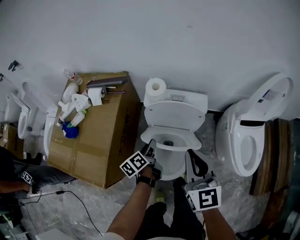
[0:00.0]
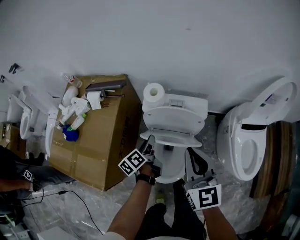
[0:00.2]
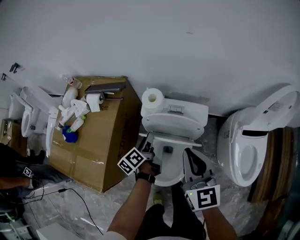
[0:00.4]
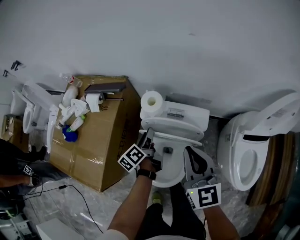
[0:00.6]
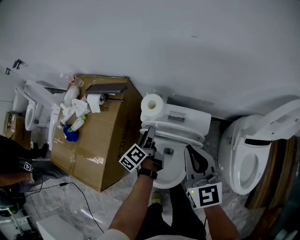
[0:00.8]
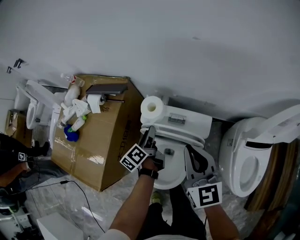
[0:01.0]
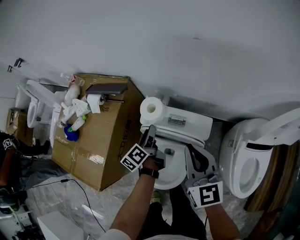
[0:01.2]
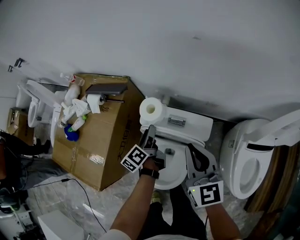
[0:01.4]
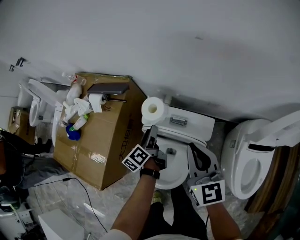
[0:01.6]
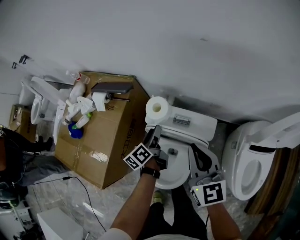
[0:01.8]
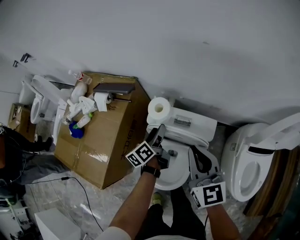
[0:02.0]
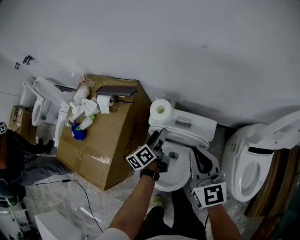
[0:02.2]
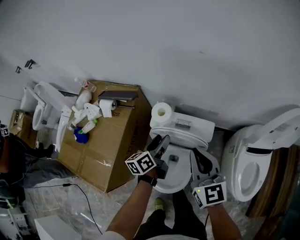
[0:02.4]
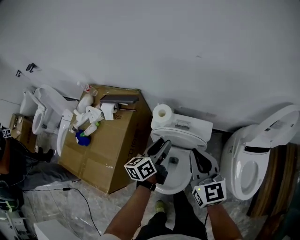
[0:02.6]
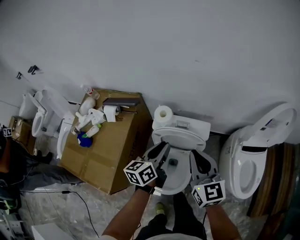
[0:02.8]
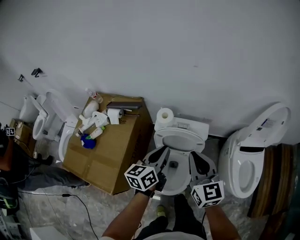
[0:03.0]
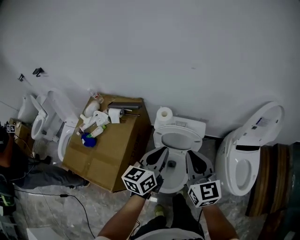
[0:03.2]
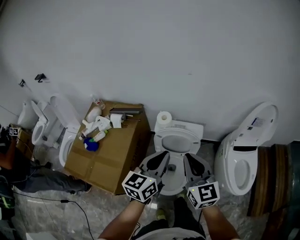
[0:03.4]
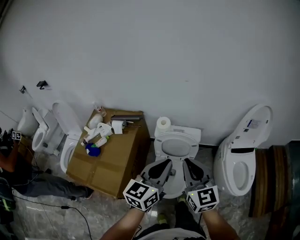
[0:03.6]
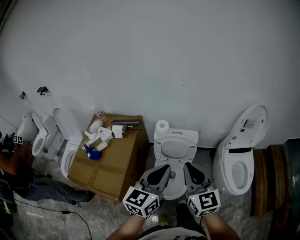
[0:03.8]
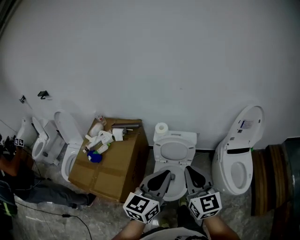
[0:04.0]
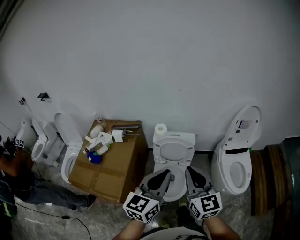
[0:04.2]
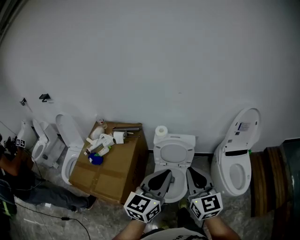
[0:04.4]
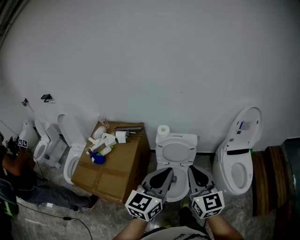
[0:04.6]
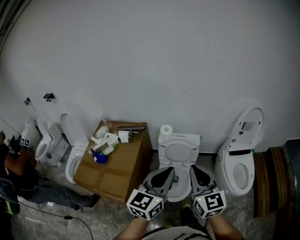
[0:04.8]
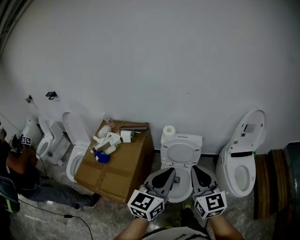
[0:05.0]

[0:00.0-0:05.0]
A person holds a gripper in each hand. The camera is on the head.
0.0 to 1.6 s: The left gripper travels forward by approximately 20 cm. Meanwhile the right gripper moves forward and to the right, approximately 20 cm.
1.6 to 3.4 s: The right gripper shifts some 25 cm backward and upward. Meanwhile the left gripper shifts about 40 cm upward and backward, rotates around the line of its fingers by about 50 degrees, clockwise from behind, and closes up.
3.4 to 5.0 s: The two grippers go some 20 cm backward and upward.

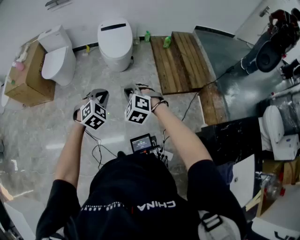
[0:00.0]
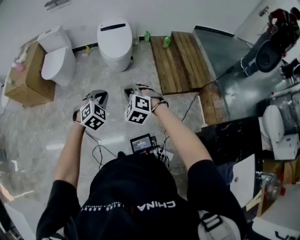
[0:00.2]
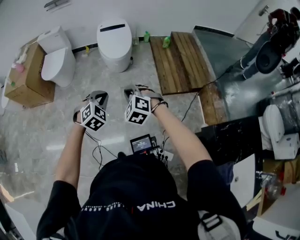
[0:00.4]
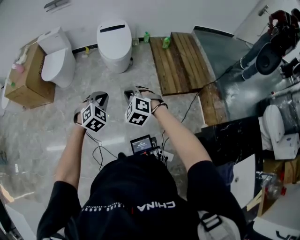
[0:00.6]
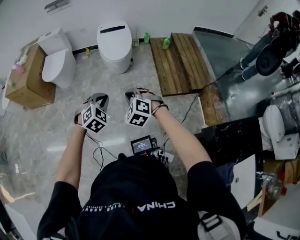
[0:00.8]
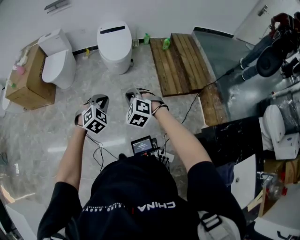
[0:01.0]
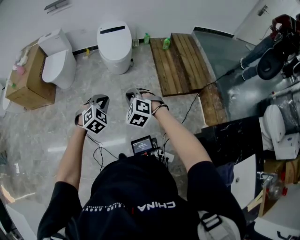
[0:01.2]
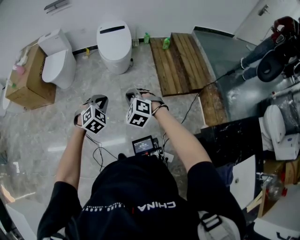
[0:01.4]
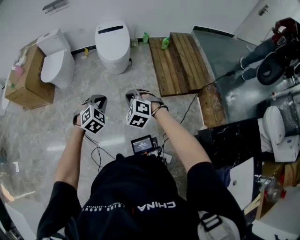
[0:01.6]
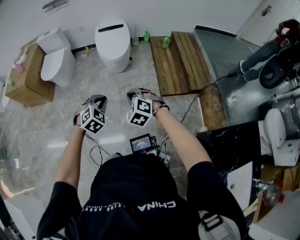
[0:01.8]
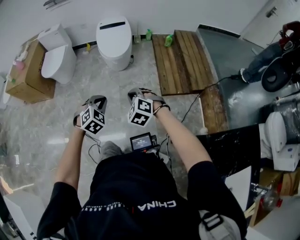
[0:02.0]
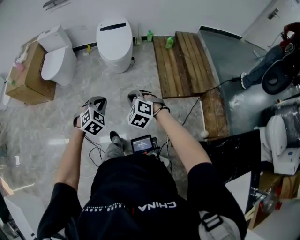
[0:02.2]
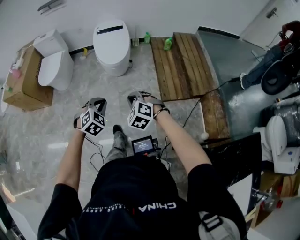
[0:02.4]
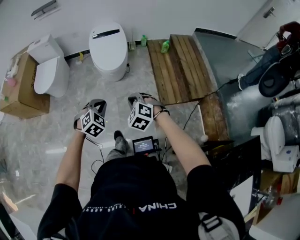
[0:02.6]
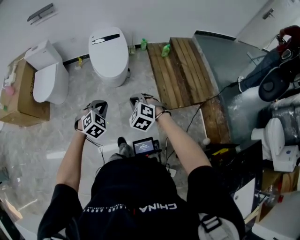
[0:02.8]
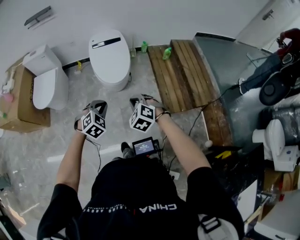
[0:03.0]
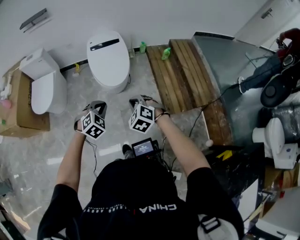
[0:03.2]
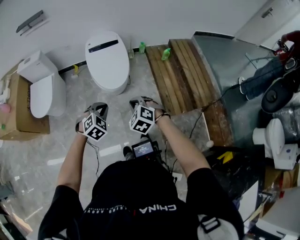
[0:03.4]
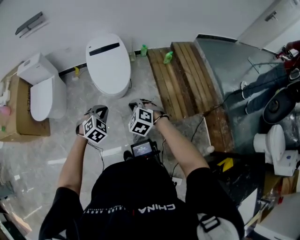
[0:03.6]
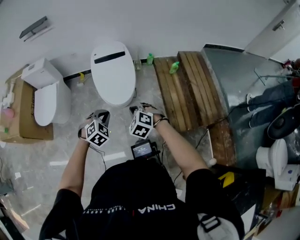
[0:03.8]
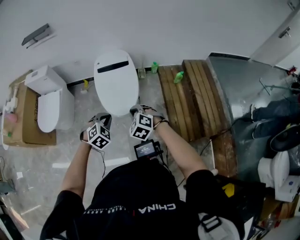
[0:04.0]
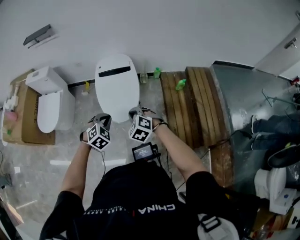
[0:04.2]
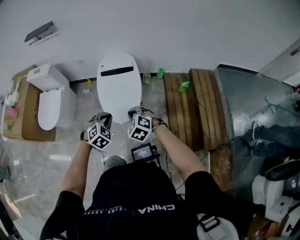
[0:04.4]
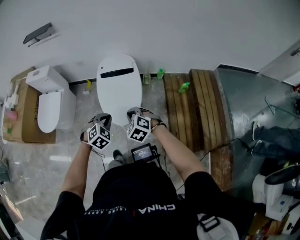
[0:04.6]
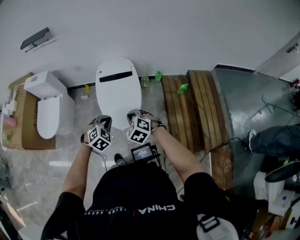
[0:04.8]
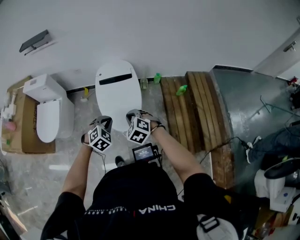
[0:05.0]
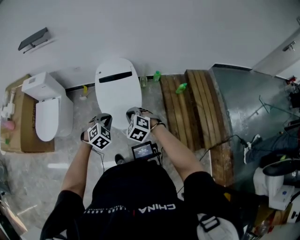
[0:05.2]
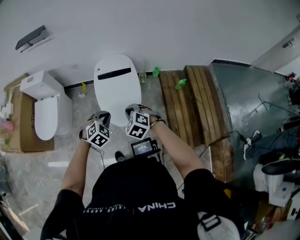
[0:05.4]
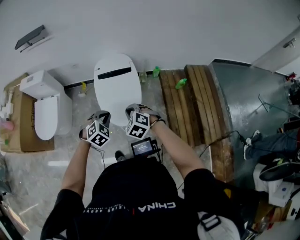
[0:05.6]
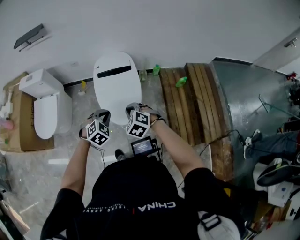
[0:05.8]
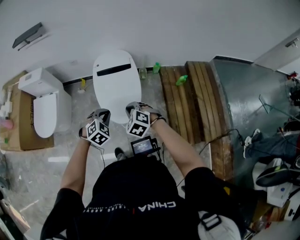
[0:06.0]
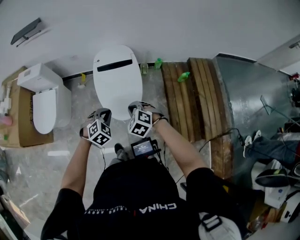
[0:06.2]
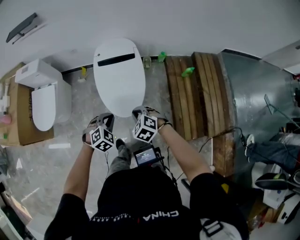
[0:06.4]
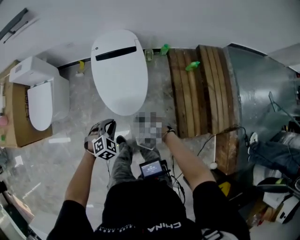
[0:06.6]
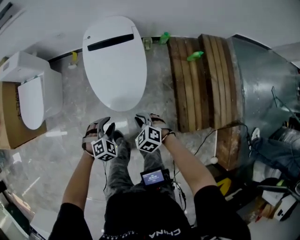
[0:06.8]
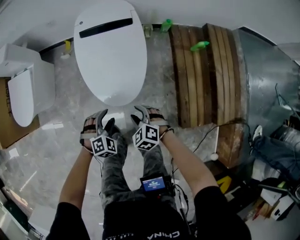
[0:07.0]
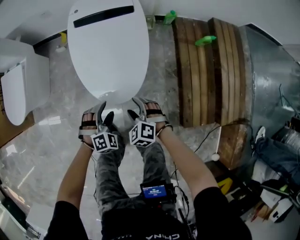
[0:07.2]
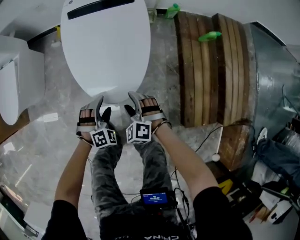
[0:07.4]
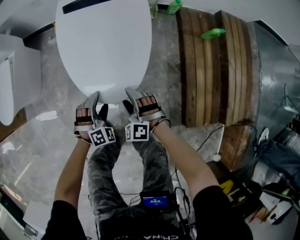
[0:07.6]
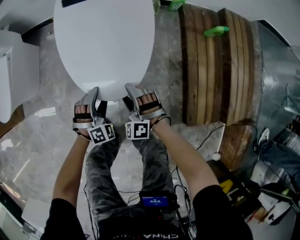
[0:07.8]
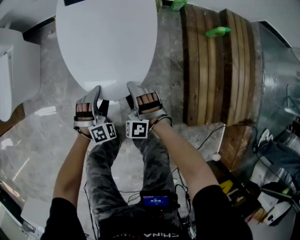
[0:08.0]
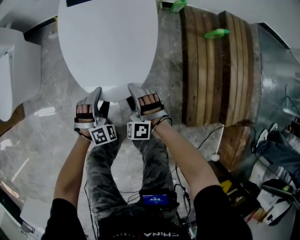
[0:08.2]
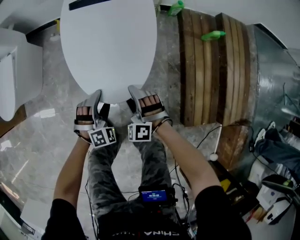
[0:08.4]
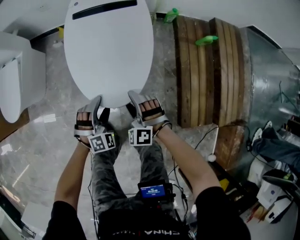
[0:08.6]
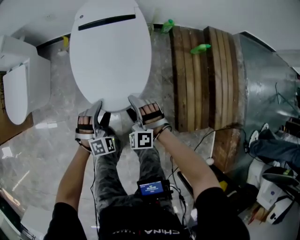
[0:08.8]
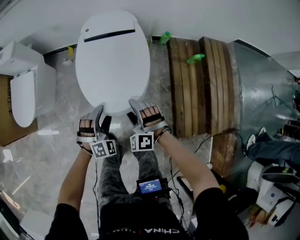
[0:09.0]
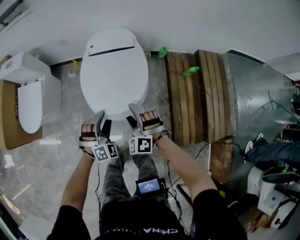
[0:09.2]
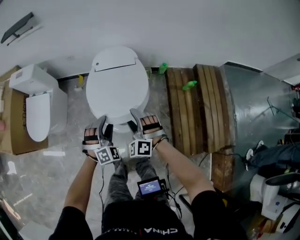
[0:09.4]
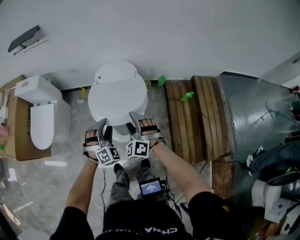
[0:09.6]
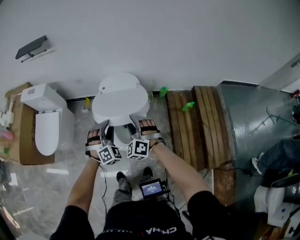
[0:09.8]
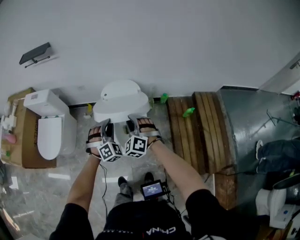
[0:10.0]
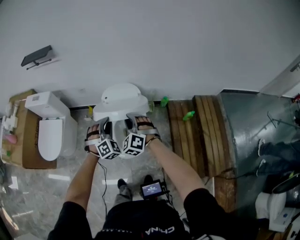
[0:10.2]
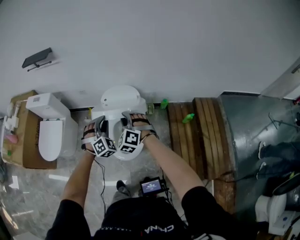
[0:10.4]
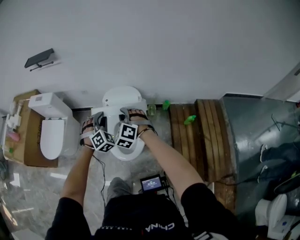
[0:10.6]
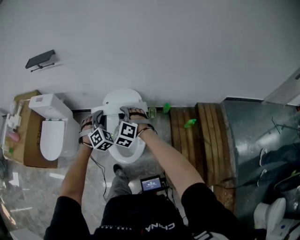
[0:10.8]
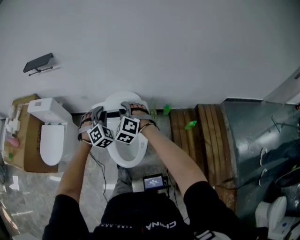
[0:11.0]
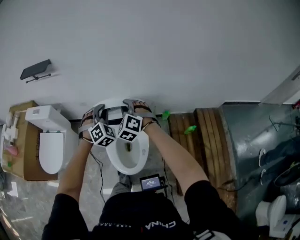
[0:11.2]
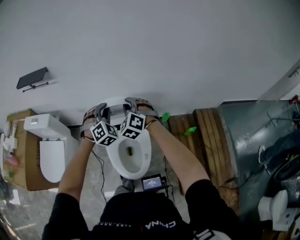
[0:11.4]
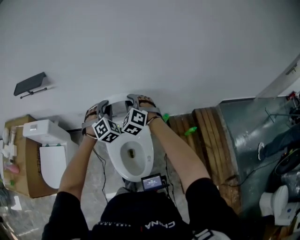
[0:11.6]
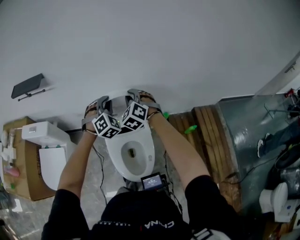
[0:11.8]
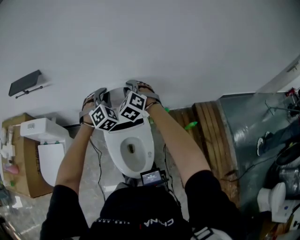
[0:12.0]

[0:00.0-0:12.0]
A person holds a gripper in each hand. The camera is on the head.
0.0 to 1.6 s: The grippers make only small movements.
1.6 to 3.0 s: The two grippers go about 30 cm forward.
3.0 to 4.4 s: The two grippers go about 35 cm forward.
4.4 to 6.0 s: The grippers both shift forward by some 5 cm.
6.0 to 7.6 s: The grippers both shift downward by roughly 40 cm. The left gripper swivels approximately 20 degrees, and opens its fingers; the right gripper rotates about 20 degrees, and opens its fingers.
7.6 to 9.0 s: The two grippers go approximately 25 cm upward.
9.0 to 10.4 s: The grippers both shift upward and forward by roughly 30 cm. The left gripper closes. Meanwhile the right gripper closes.
10.4 to 12.0 s: The two grippers go about 30 cm forward.

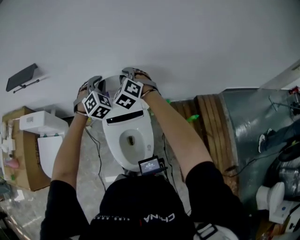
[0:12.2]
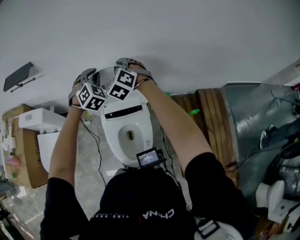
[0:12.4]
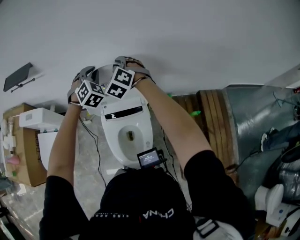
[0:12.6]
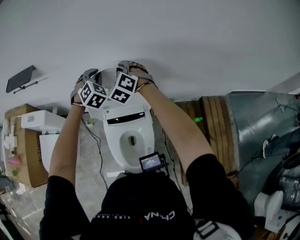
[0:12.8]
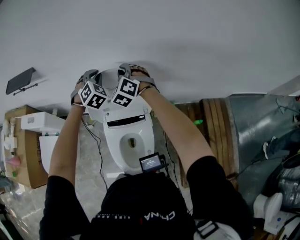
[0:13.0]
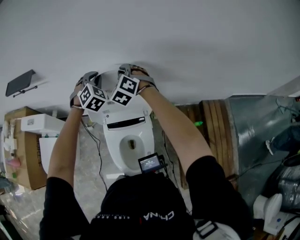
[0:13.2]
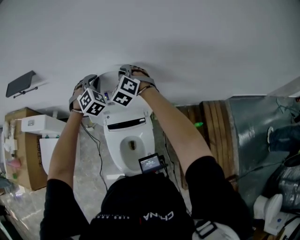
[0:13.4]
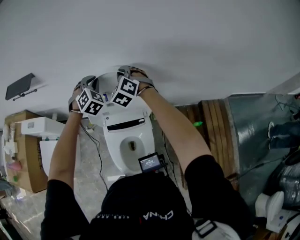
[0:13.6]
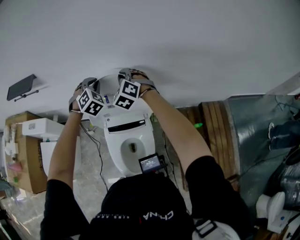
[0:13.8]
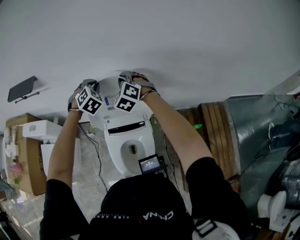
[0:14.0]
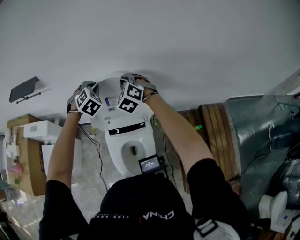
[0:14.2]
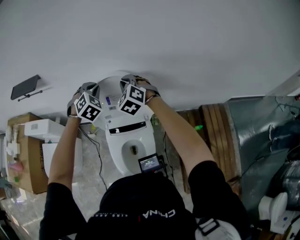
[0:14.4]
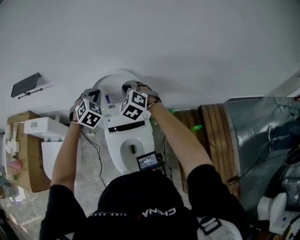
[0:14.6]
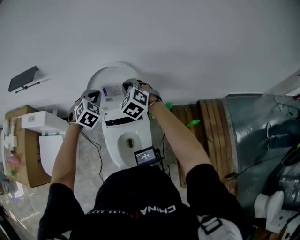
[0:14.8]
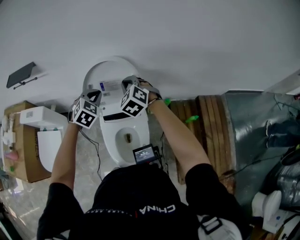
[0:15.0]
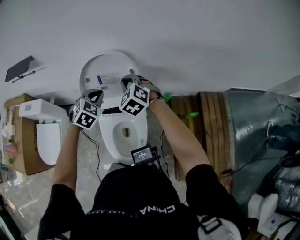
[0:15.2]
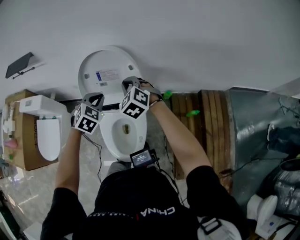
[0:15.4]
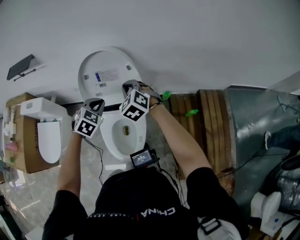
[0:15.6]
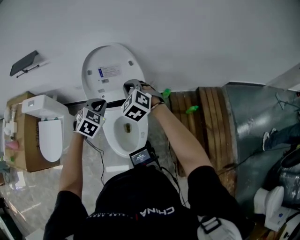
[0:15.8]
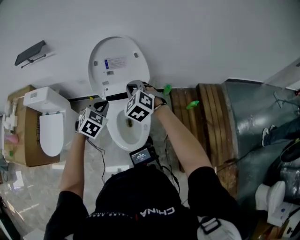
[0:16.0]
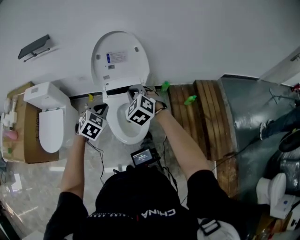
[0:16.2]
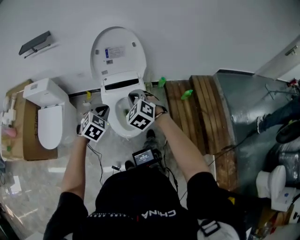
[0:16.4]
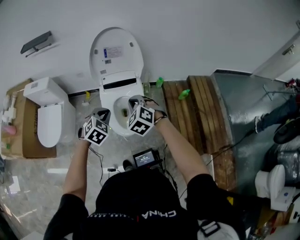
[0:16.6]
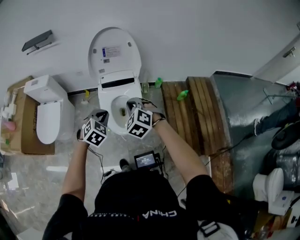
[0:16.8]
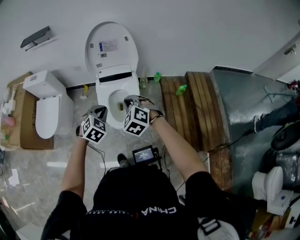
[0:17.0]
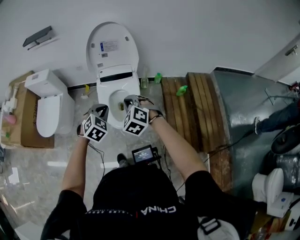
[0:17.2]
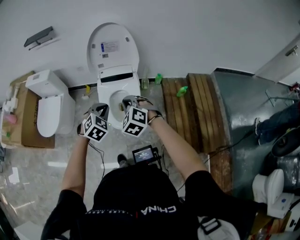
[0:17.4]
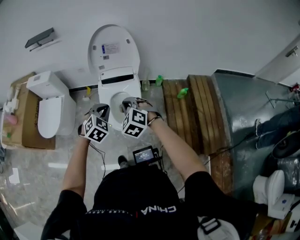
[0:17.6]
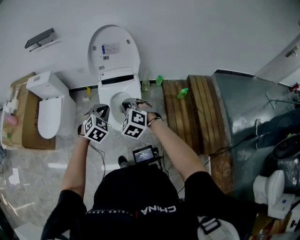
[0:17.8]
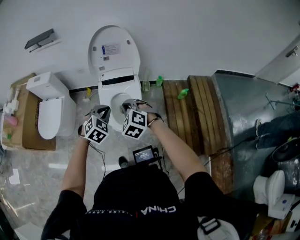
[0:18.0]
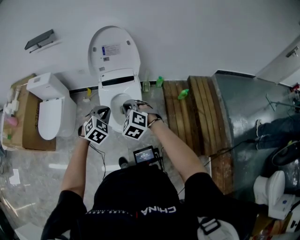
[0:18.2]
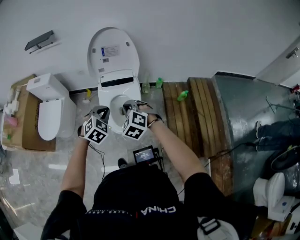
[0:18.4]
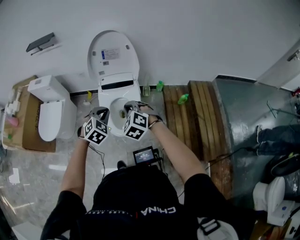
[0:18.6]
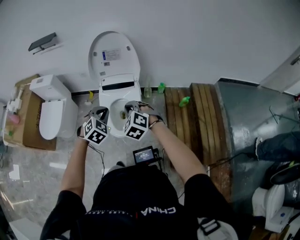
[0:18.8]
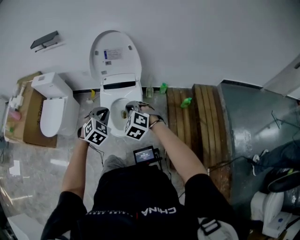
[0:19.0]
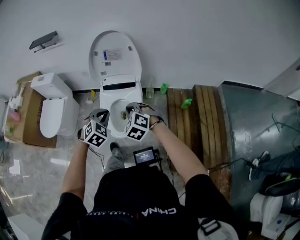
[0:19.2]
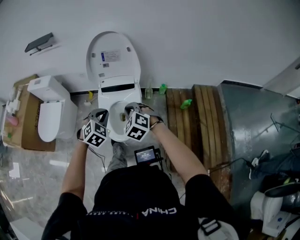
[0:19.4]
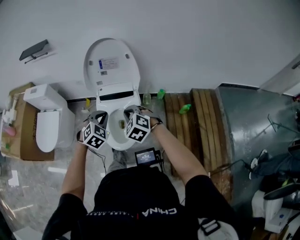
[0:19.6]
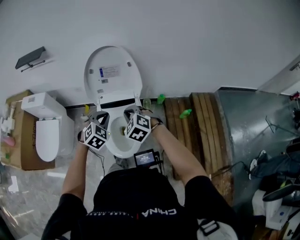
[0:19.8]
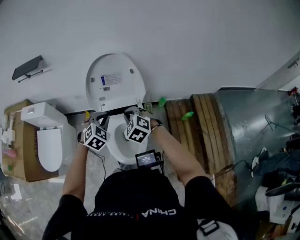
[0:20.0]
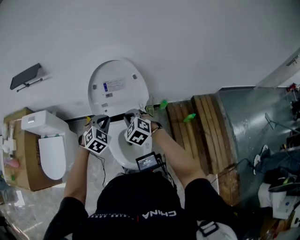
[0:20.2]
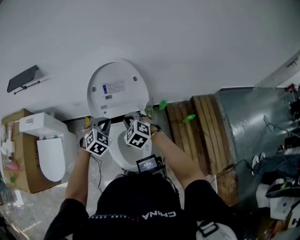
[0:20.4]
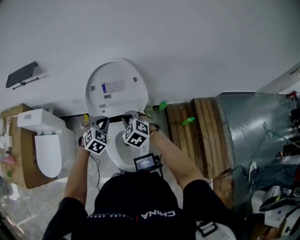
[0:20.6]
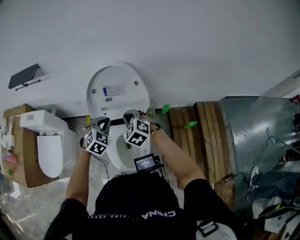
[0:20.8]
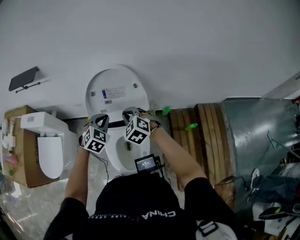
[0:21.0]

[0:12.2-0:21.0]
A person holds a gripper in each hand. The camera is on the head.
12.2 to 13.6 s: The two grippers go approximately 10 cm forward.
13.6 to 15.2 s: Both grippers travel together backward, about 15 cm. The left gripper changes its angle by approximately 20 degrees.
15.2 to 16.6 s: Both grippers move backward, roughly 40 cm.
16.6 to 18.0 s: The left gripper is displaced to the right by roughly 5 cm. The right gripper travels backward by some 5 cm.
18.0 to 19.6 s: The two grippers go some 10 cm forward.
19.6 to 21.0 s: The two grippers go roughly 25 cm forward.
